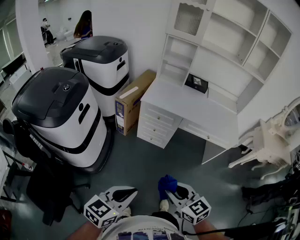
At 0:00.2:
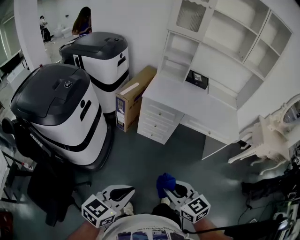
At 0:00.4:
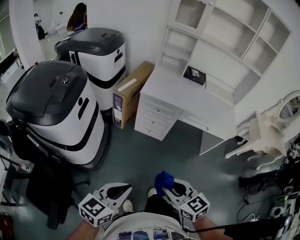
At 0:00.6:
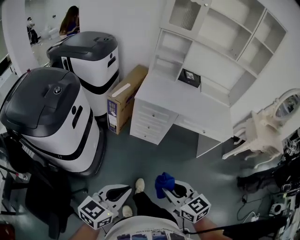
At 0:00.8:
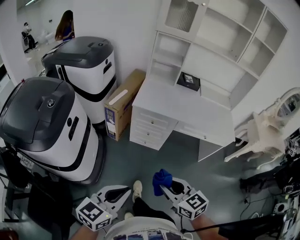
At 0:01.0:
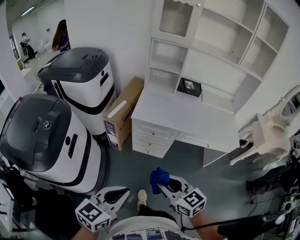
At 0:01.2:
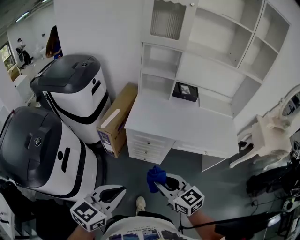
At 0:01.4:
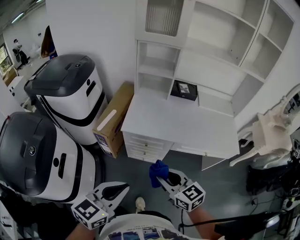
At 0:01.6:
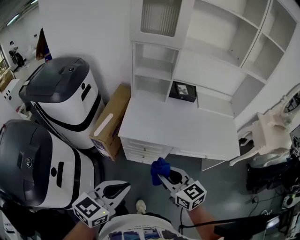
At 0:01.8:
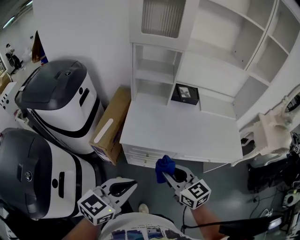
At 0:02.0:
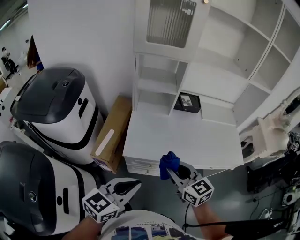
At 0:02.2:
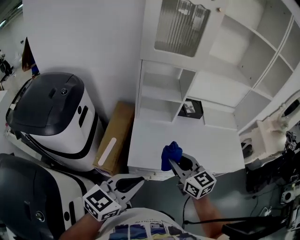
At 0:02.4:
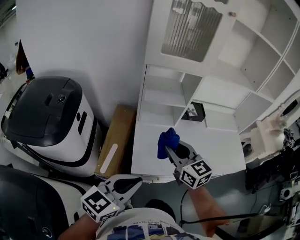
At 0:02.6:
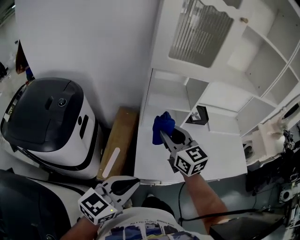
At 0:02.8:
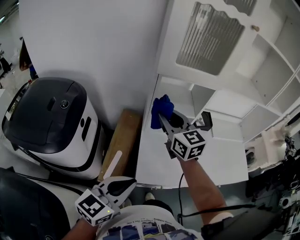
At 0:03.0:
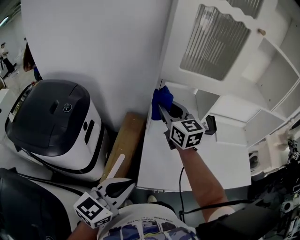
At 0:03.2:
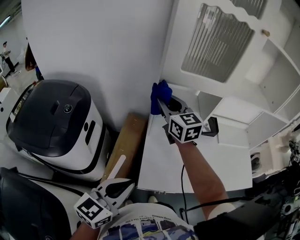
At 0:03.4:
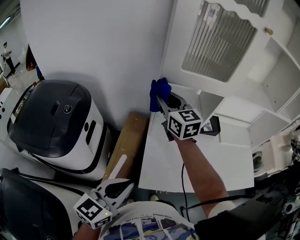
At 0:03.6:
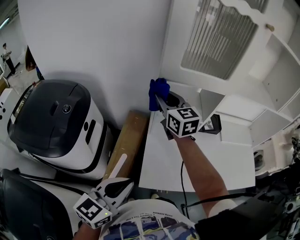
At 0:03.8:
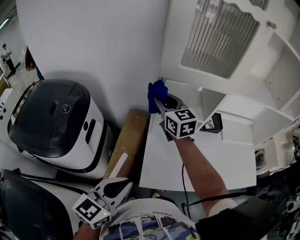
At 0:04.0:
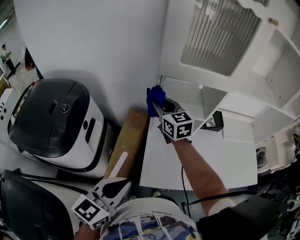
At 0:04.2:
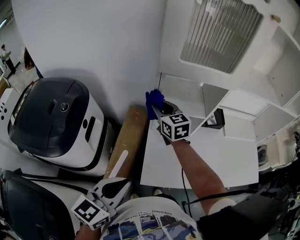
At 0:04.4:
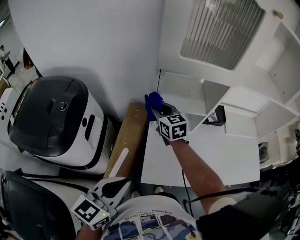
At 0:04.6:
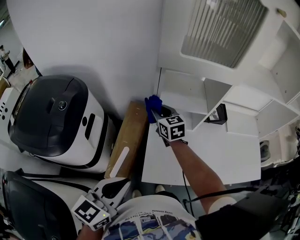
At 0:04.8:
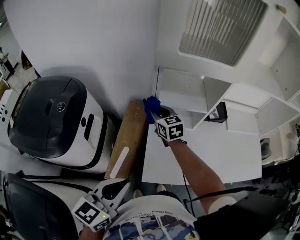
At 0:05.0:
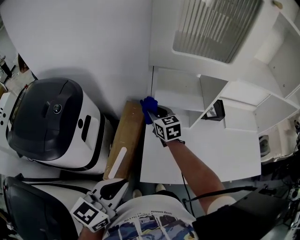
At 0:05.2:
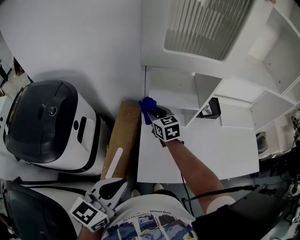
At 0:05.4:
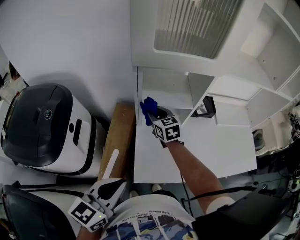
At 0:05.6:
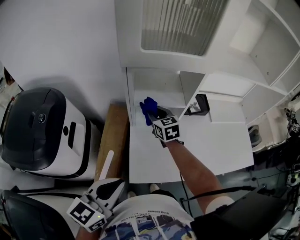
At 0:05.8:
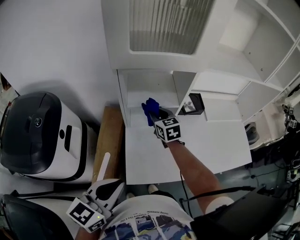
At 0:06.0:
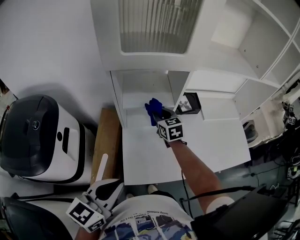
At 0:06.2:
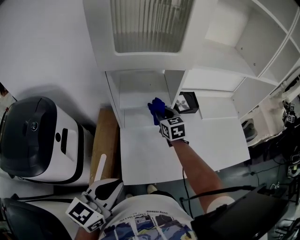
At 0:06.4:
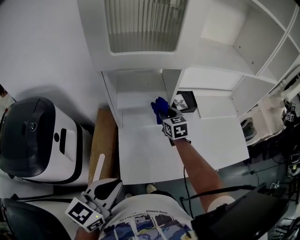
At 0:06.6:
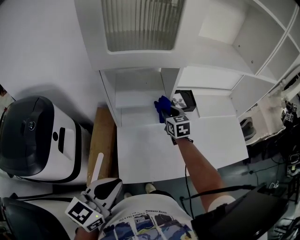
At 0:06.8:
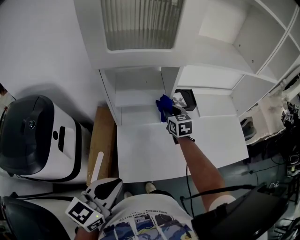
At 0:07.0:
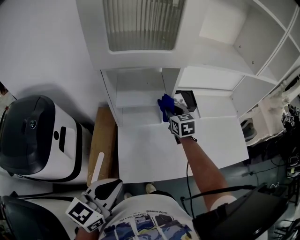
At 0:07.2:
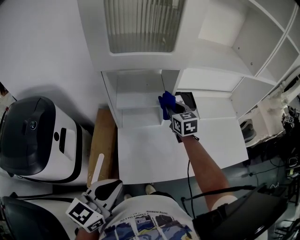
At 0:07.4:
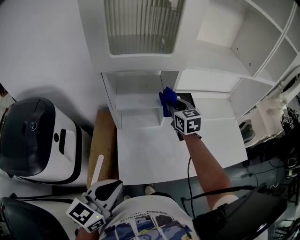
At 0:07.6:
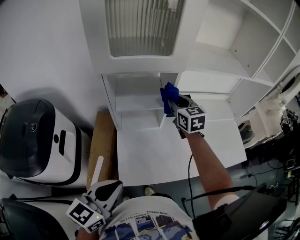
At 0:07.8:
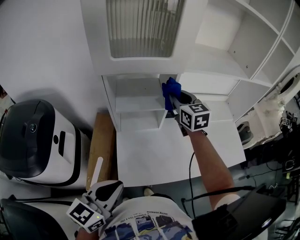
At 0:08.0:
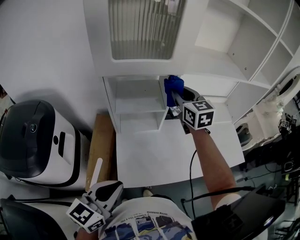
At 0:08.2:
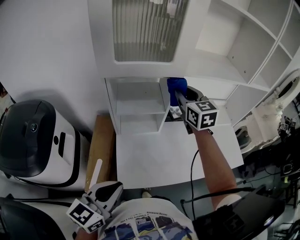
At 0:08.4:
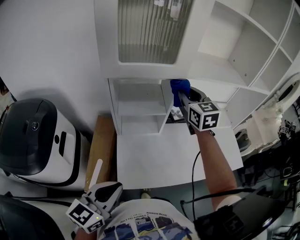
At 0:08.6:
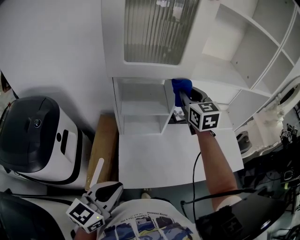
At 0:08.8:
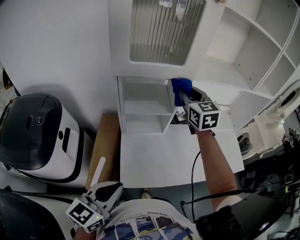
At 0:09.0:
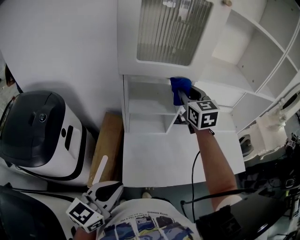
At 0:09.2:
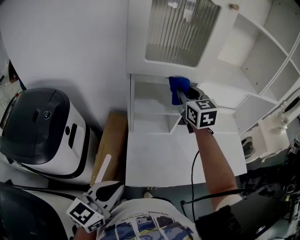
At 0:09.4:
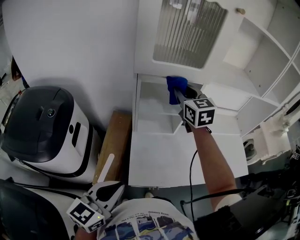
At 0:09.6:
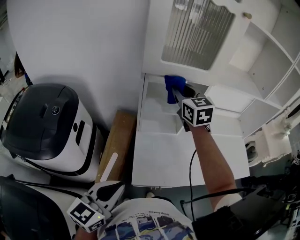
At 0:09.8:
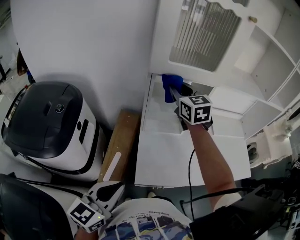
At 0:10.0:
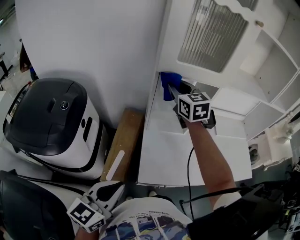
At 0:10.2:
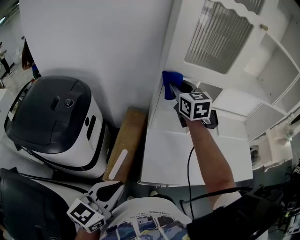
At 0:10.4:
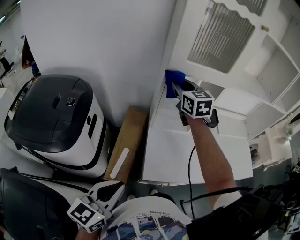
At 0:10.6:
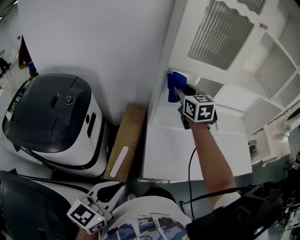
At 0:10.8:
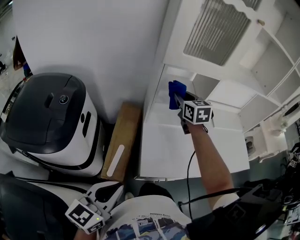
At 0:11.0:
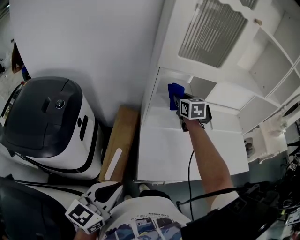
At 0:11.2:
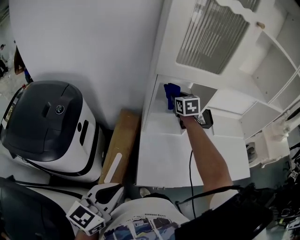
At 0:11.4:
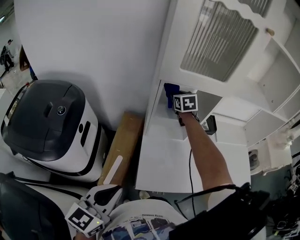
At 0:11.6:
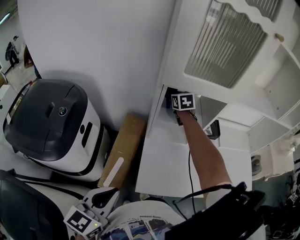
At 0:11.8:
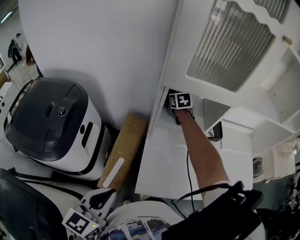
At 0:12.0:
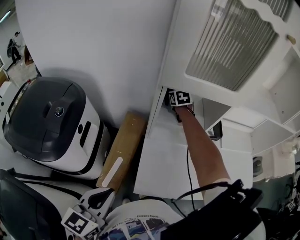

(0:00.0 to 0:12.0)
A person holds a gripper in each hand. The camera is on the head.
0:00.0 - 0:01.6: Both grippers move forward, about 35 cm.
0:01.6 - 0:03.0: The left gripper is displaced forward and to the left by some 35 cm, while the right gripper heads forward and to the left, covering some 50 cm, and turns by approximately 20 degrees.
0:03.0 - 0:04.4: The right gripper shifts some 15 cm downward.
0:04.4 - 0:06.0: The left gripper moves to the right, roughly 5 cm. Meanwhile the right gripper is displaced to the right by about 15 cm.
0:06.0 - 0:07.6: The right gripper shifts some 15 cm upward and to the right.
0:07.6 - 0:09.0: The right gripper is displaced upward by roughly 10 cm.
0:09.0 - 0:10.4: The left gripper heads to the left and backward, covering roughly 10 cm; the right gripper moves to the left, roughly 20 cm.
0:10.4 - 0:12.0: The right gripper moves downward and forward, some 25 cm, and rotates about 30 degrees. The left gripper heads forward, covering about 5 cm.

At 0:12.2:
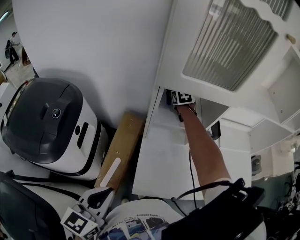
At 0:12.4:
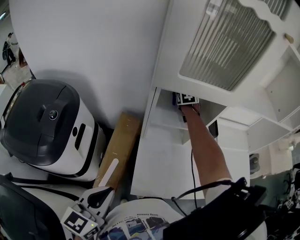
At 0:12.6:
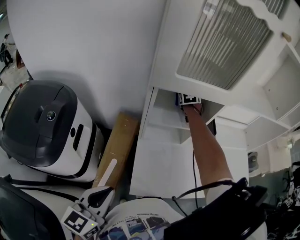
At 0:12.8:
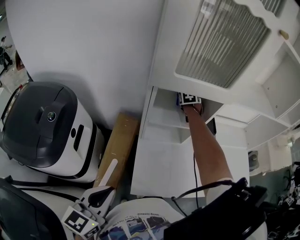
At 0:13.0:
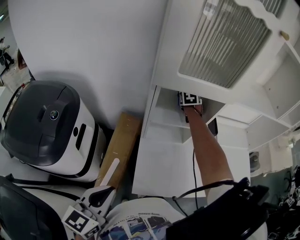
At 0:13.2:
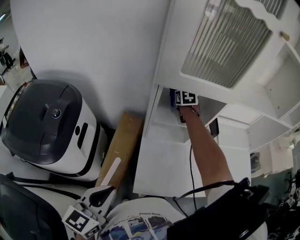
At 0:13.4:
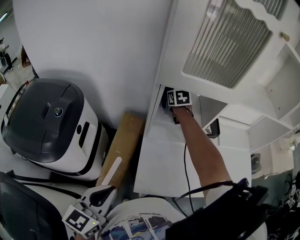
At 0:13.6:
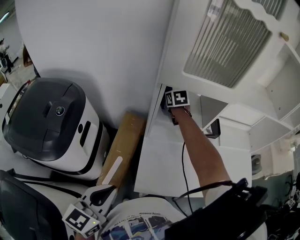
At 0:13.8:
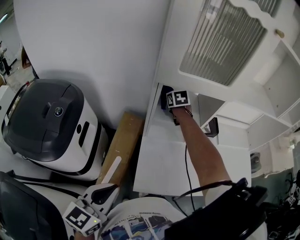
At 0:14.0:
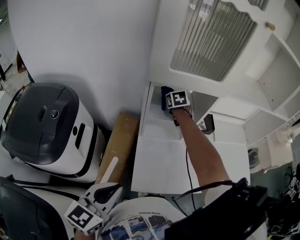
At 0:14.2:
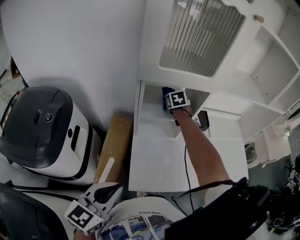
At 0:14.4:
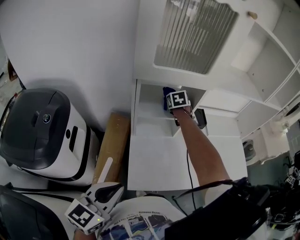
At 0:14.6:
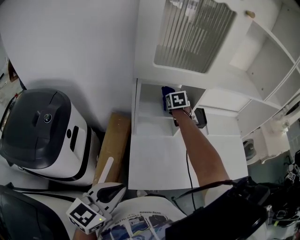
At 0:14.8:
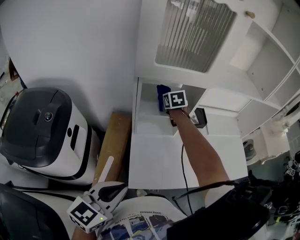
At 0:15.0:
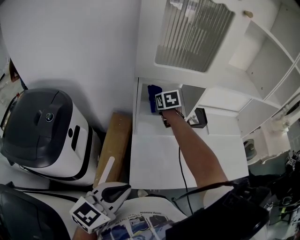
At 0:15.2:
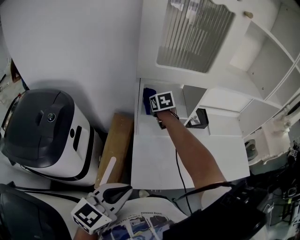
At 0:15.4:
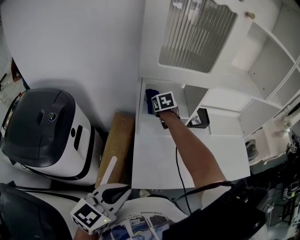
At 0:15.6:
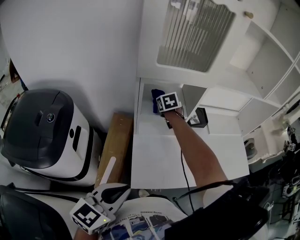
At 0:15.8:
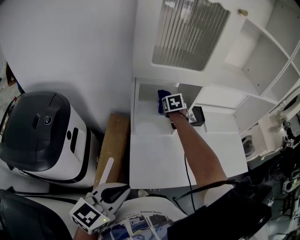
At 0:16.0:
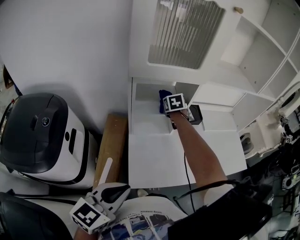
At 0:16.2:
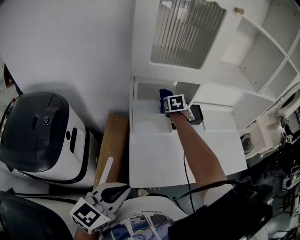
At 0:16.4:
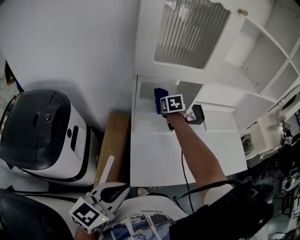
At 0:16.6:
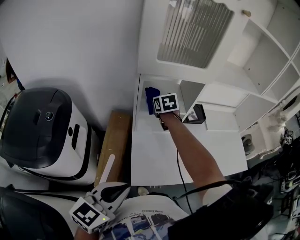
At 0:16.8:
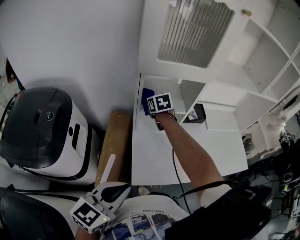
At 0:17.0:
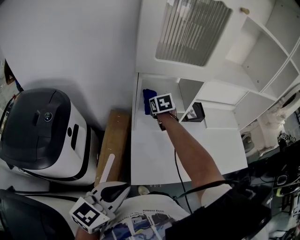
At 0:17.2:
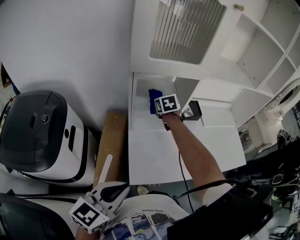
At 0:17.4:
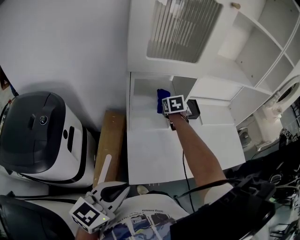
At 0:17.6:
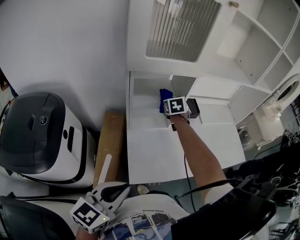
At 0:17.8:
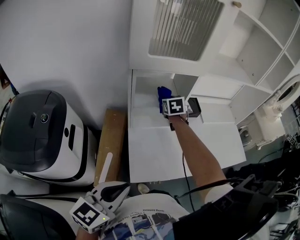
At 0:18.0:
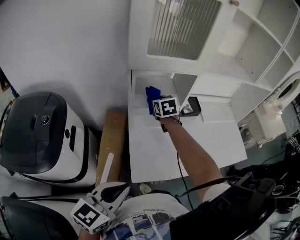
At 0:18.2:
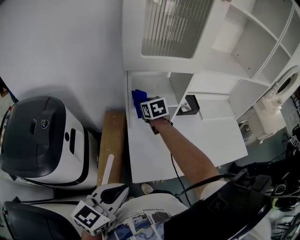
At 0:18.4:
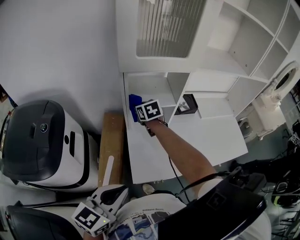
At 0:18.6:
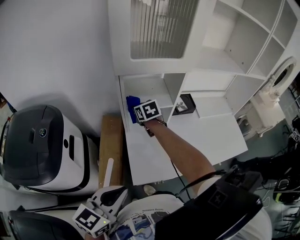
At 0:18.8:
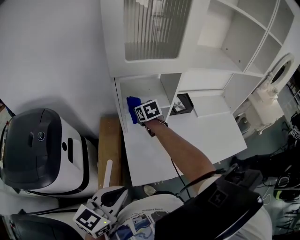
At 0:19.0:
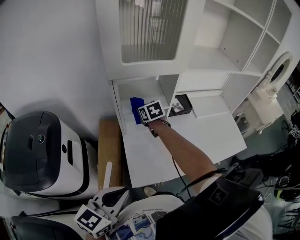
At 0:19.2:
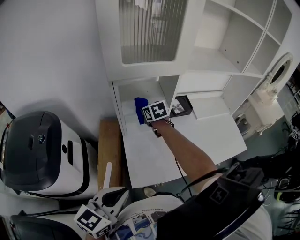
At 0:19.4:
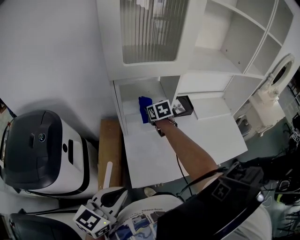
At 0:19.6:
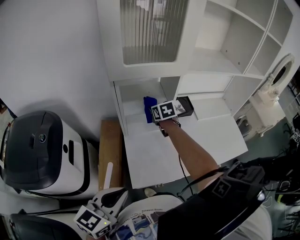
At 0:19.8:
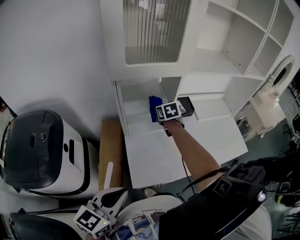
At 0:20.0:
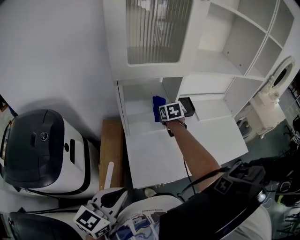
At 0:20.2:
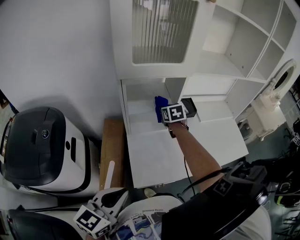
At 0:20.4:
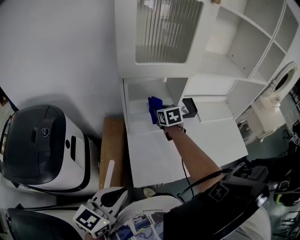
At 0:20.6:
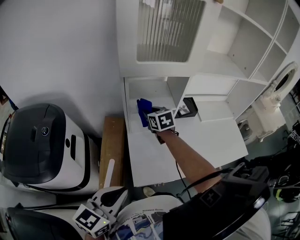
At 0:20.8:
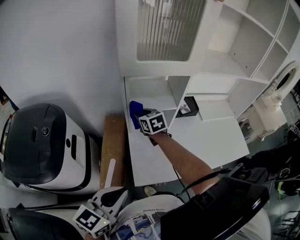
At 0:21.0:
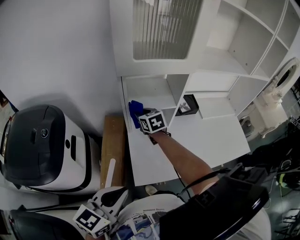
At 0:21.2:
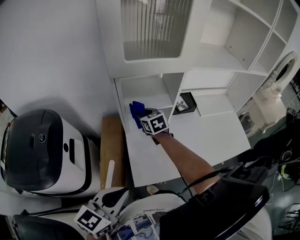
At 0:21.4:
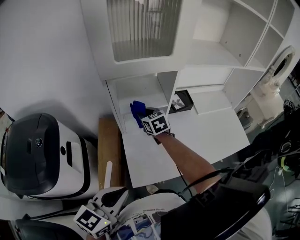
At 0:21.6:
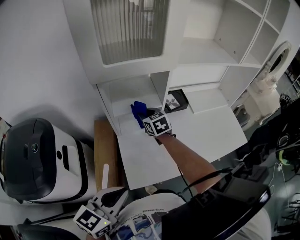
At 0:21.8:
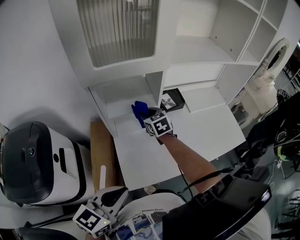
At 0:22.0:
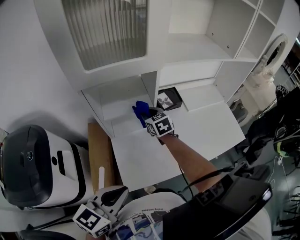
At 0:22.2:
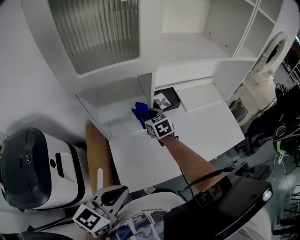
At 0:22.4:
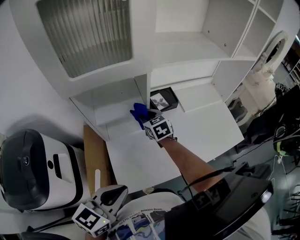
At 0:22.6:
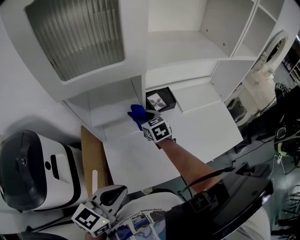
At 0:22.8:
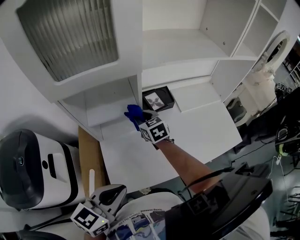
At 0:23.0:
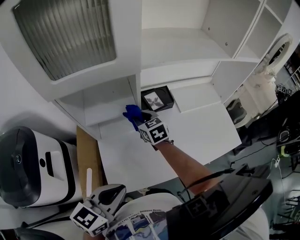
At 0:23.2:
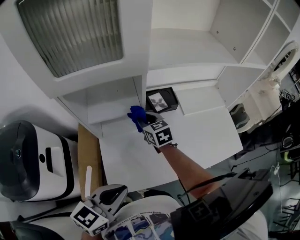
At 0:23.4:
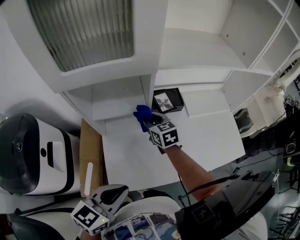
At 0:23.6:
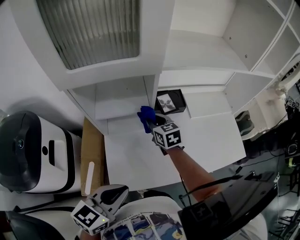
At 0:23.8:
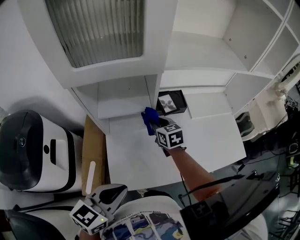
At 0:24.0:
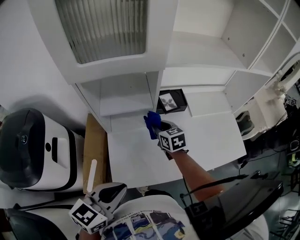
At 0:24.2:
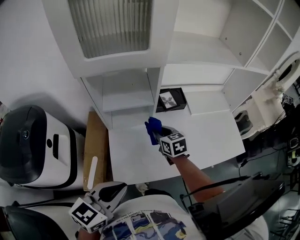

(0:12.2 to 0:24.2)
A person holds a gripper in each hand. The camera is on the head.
0:12.2 - 0:13.8: The right gripper moves some 10 cm to the right and comes back.
0:13.8 - 0:15.2: The left gripper is displaced to the right by some 5 cm, while the right gripper heads backward, covering roughly 5 cm, and goes to the right and returns, some 10 cm each way.
0:15.2 - 0:16.6: The right gripper goes to the right and returns, approximately 10 cm each way.
0:16.6 - 0:18.2: The right gripper goes to the right and returns, roughly 10 cm each way.
0:18.2 - 0:19.8: The right gripper goes some 10 cm to the right.
0:19.8 - 0:21.2: The right gripper shifts approximately 10 cm to the left and backward.
0:21.2 - 0:22.6: The right gripper shifts roughly 15 cm to the right, while the left gripper heads to the right and forward, covering about 15 cm.
0:22.6 - 0:24.2: The right gripper is displaced backward by approximately 10 cm.
